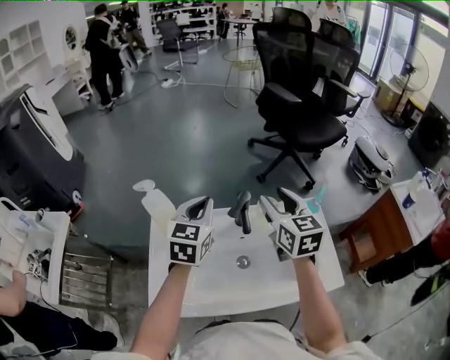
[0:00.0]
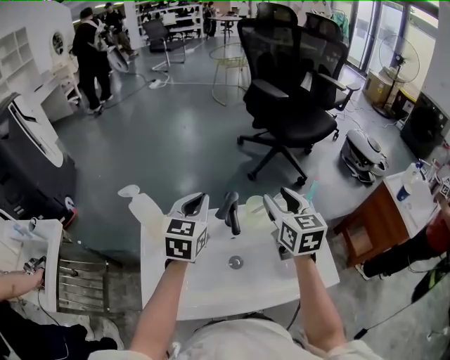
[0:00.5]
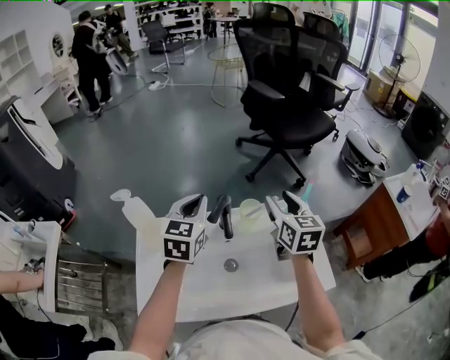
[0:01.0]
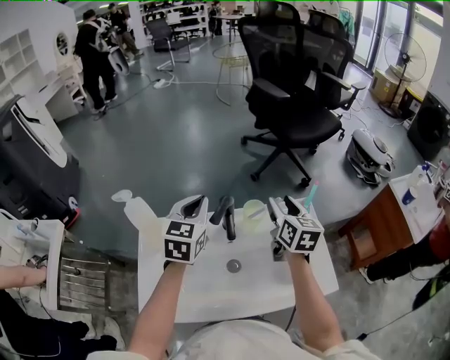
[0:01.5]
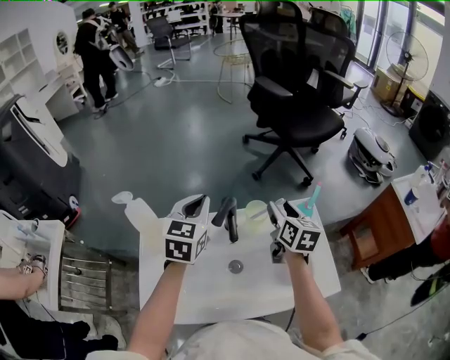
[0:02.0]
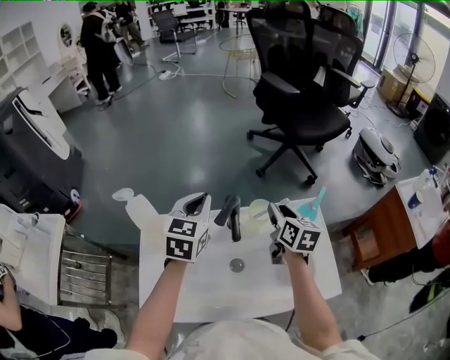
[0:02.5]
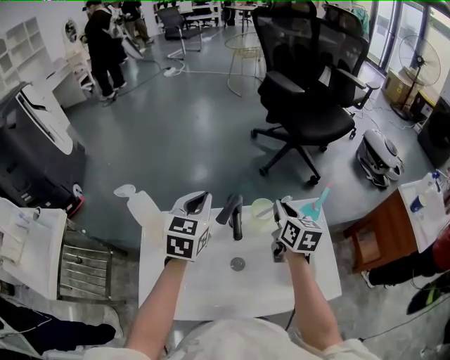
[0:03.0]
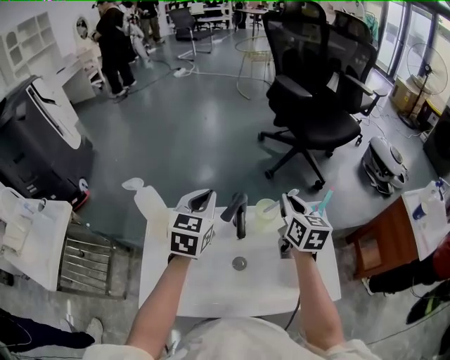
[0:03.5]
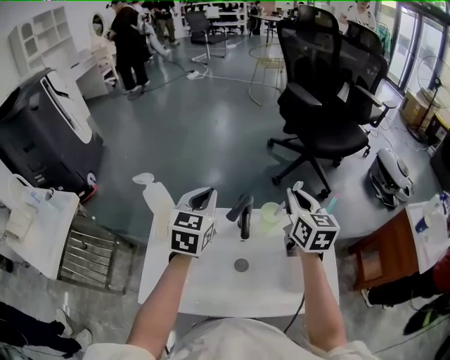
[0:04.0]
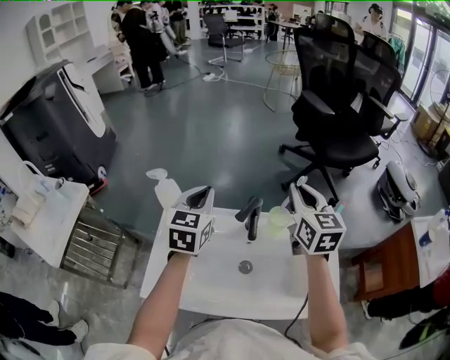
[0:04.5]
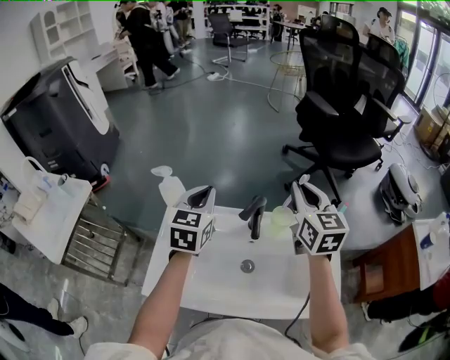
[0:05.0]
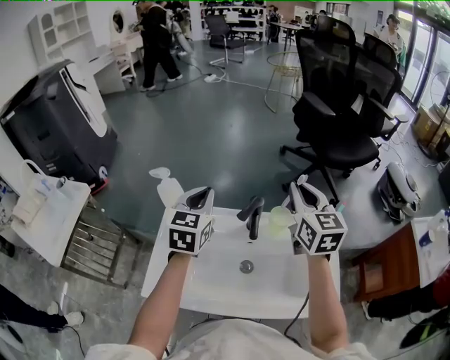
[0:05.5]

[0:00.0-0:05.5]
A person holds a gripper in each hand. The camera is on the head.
0:00.0 to 0:02.0: The right gripper travels downward and to the right by approximately 15 cm, and changes its angle by some 20 degrees, while the left gripper moves about 5 cm.
0:02.0 to 0:03.5: The right gripper closes its fingers.
0:03.5 to 0:05.5: The right gripper goes about 15 cm upward and to the left, and rotates approximately 20 degrees; the left gripper goes about 5 cm to the left.

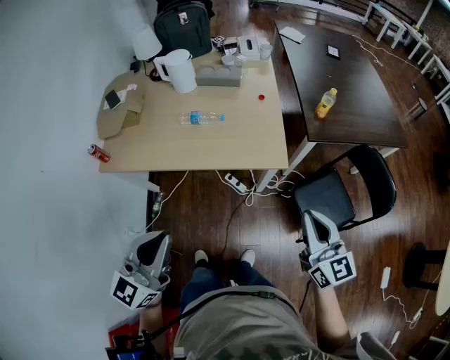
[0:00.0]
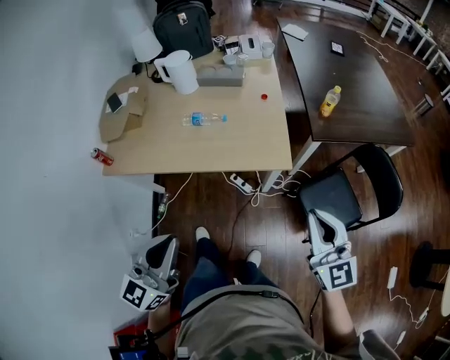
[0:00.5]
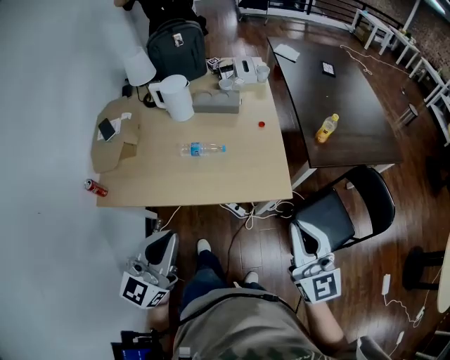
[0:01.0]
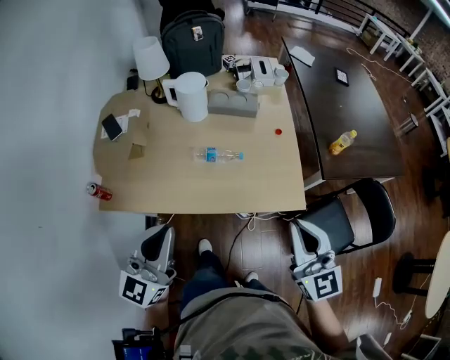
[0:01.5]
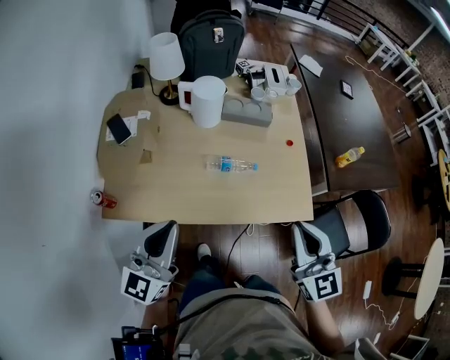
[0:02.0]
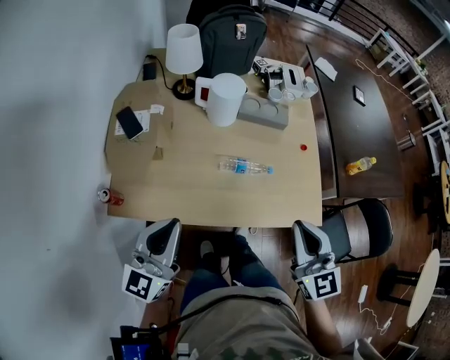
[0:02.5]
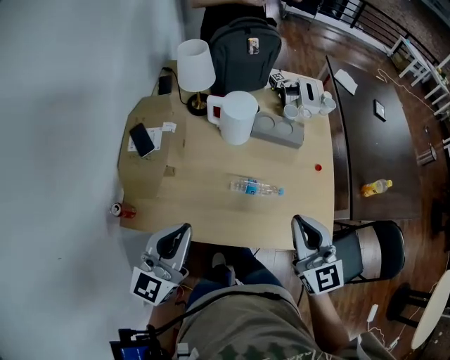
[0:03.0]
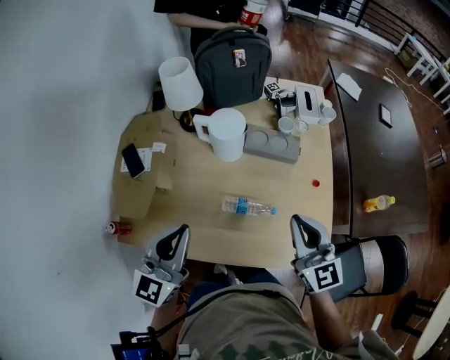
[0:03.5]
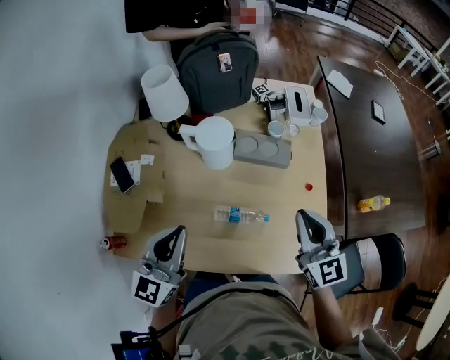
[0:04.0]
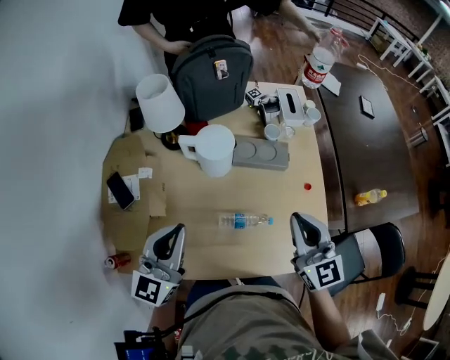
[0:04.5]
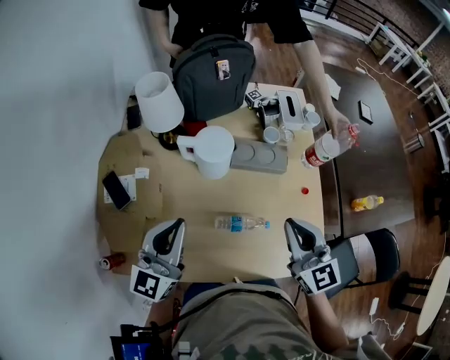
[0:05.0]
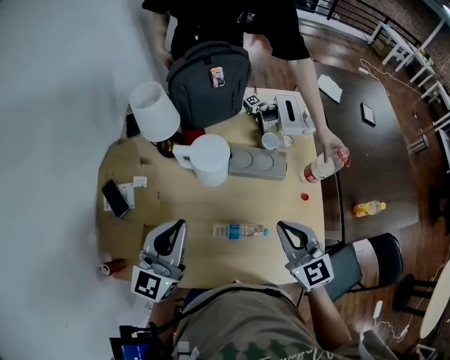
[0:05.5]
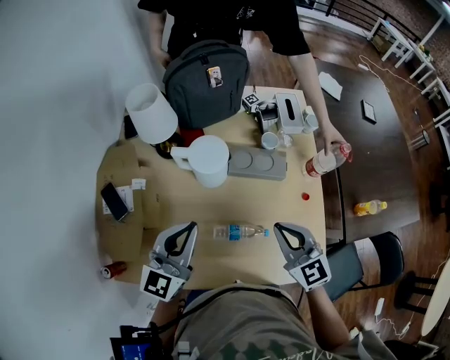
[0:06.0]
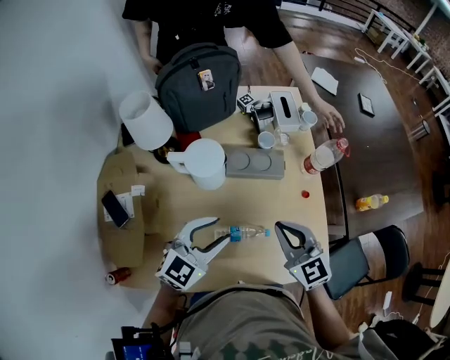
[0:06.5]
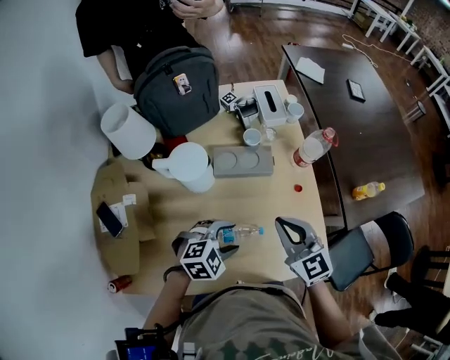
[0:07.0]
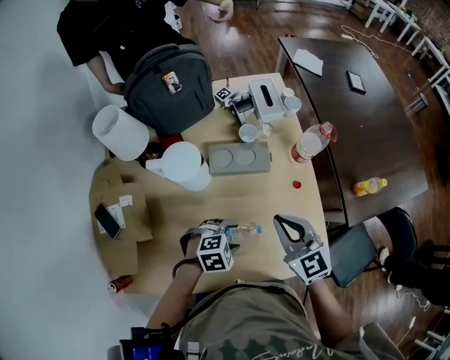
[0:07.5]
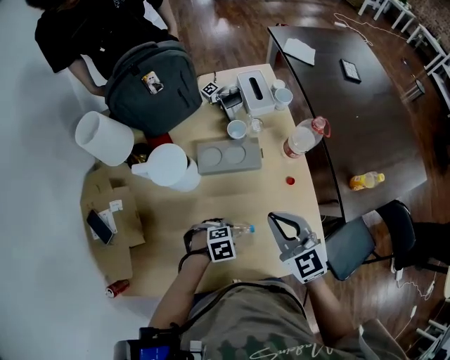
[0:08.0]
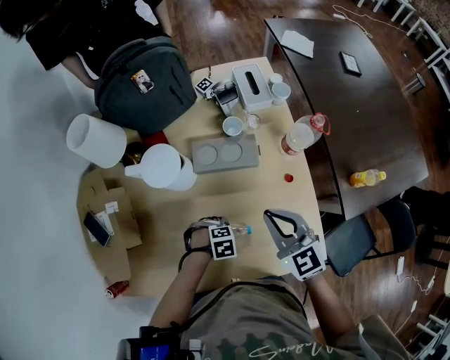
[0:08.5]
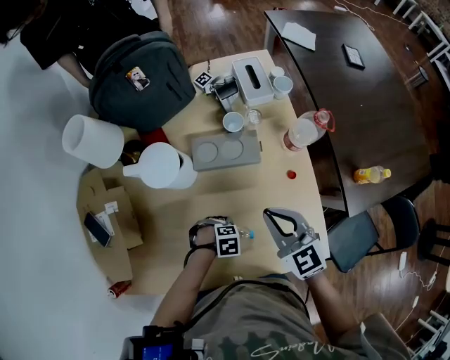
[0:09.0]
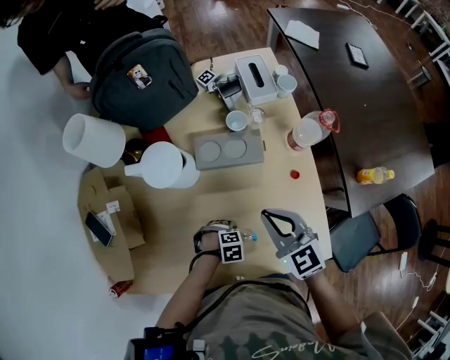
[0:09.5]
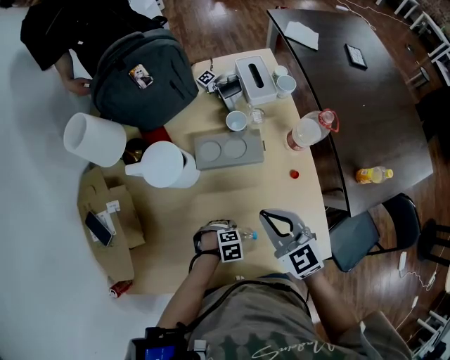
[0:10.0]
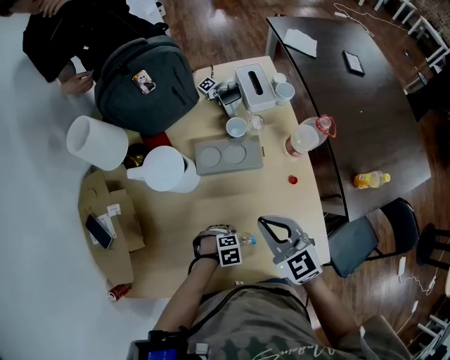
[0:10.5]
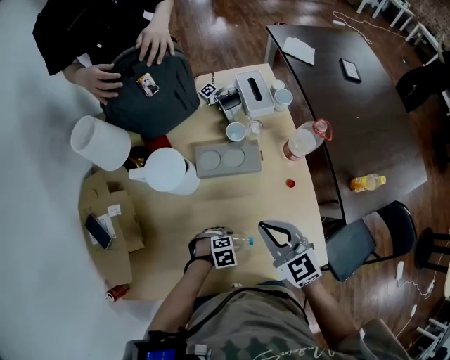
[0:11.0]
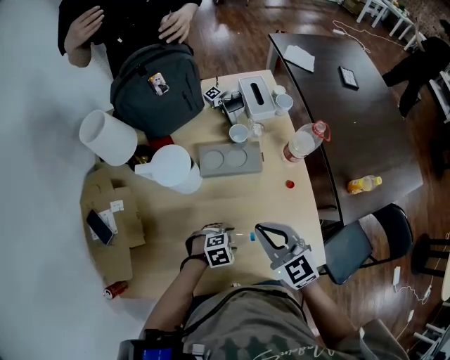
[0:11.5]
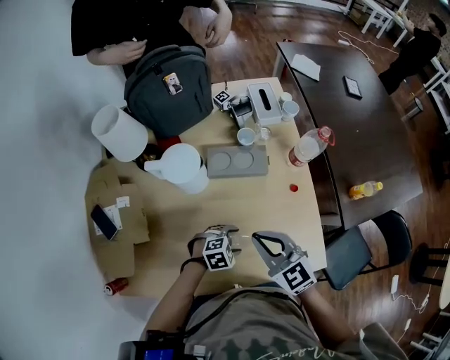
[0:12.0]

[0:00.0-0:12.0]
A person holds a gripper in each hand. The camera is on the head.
0:00.0 to 0:02.0: The right gripper goes roughly 30 cm to the left and forward. The left gripper is displaced forward and to the left by roughly 35 cm.
0:02.0 to 0:04.0: The two grippers go approximately 25 cm forward.
0:04.0 to 0:06.0: The right gripper heads to the left and downward, covering some 10 cm, while the left gripper moves forward, roughly 10 cm.
0:06.0 to 0:08.0: The right gripper ends up approximately 10 cm from where it was. The left gripper shifts about 30 cm downward, tips its fingers downward by some 70 degrees, and opens its fingers.
0:08.0 to 0:10.0: The left gripper moves downward, about 10 cm.
0:10.0 to 0:12.0: The left gripper goes some 10 cm upward, and rotates some 20 degrees, while the right gripper changes place by roughly 10 cm.

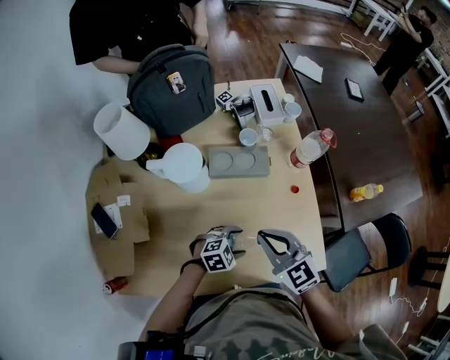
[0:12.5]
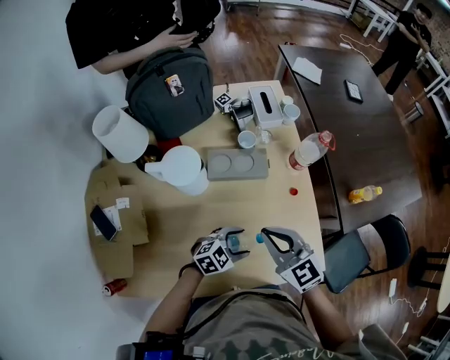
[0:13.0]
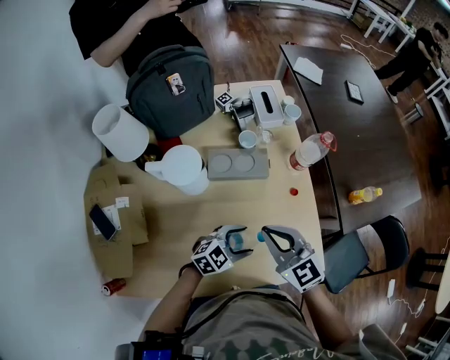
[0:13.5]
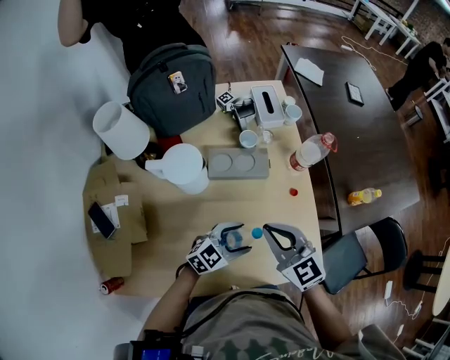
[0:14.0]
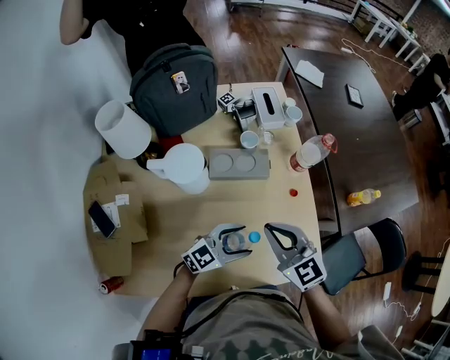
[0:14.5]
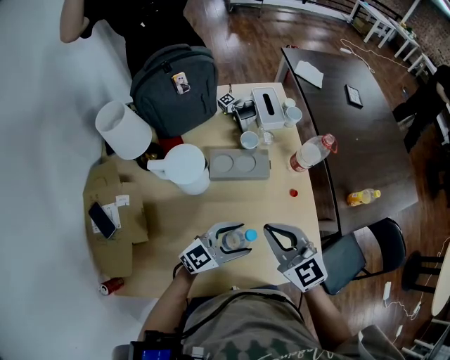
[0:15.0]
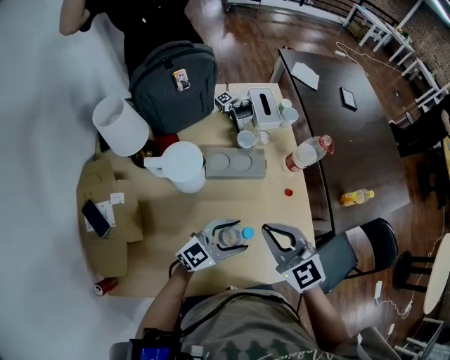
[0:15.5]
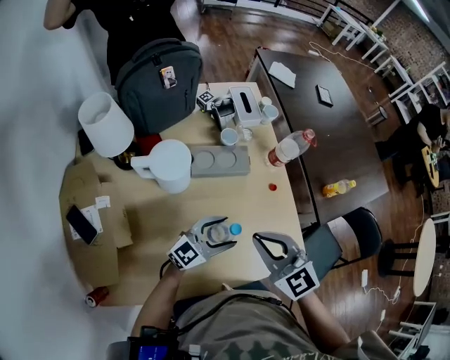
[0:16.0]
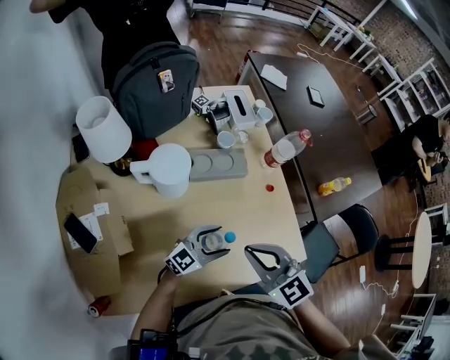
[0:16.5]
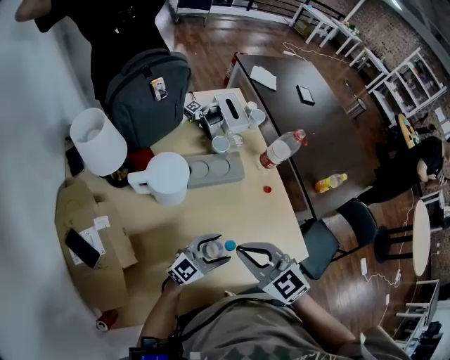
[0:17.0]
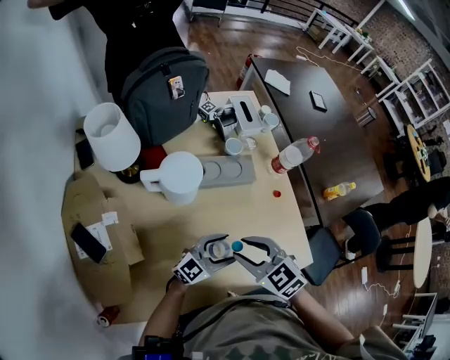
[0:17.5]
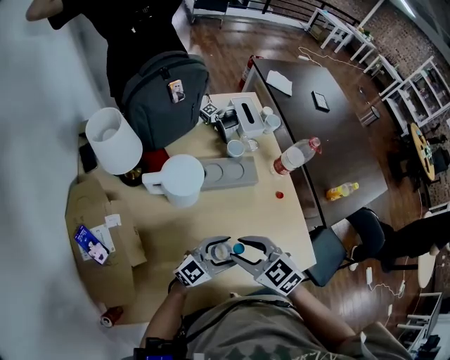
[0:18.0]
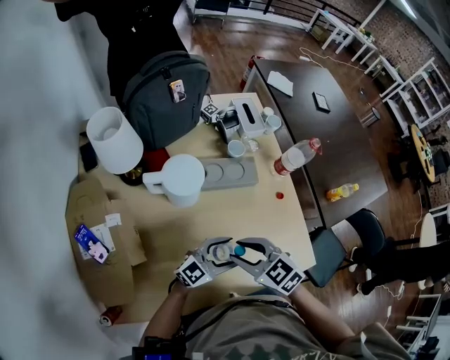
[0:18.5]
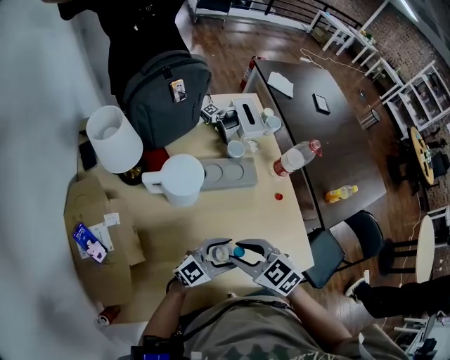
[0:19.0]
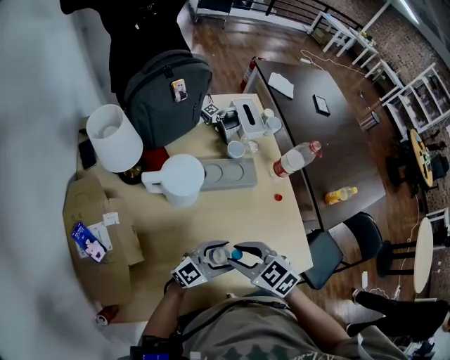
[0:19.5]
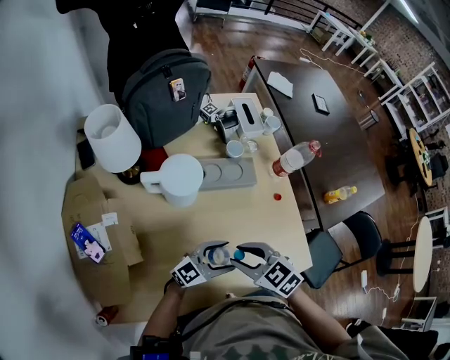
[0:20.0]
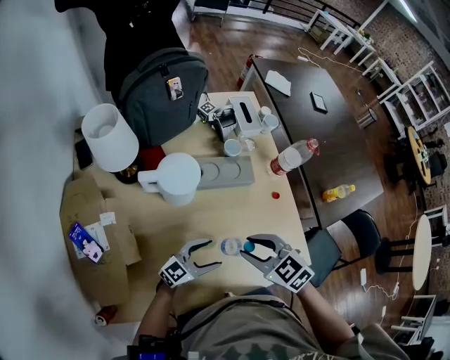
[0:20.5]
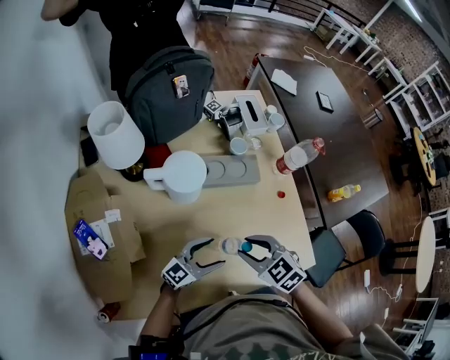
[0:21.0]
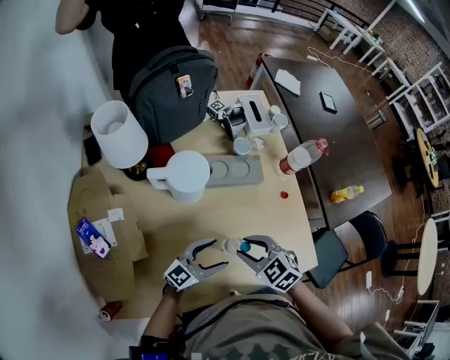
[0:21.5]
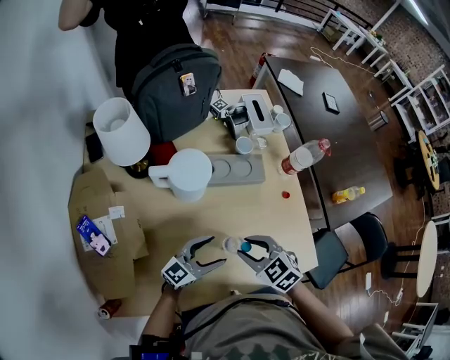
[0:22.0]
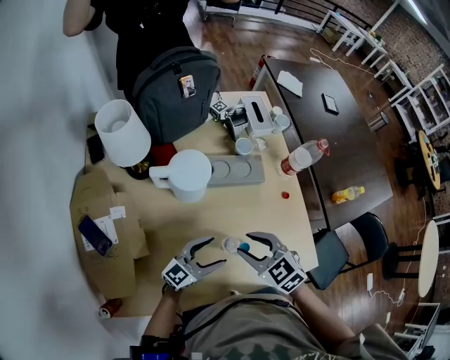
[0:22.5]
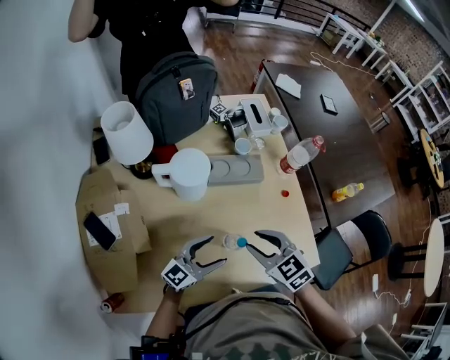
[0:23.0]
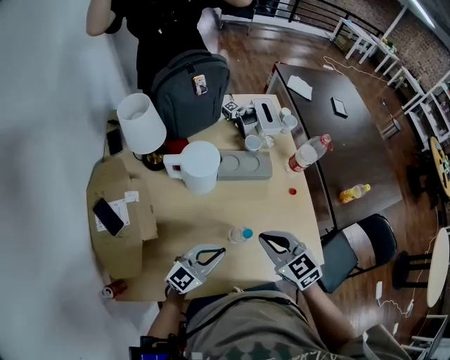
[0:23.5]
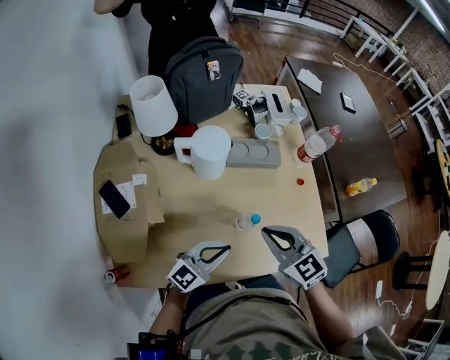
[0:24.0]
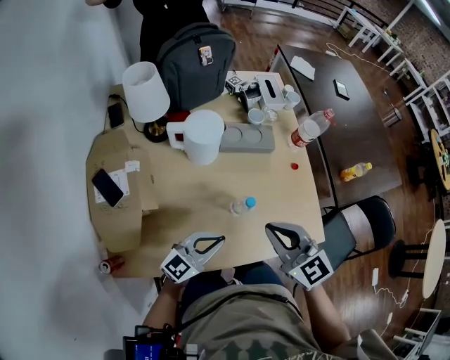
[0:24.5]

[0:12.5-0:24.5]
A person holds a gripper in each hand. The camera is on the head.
0:12.5 to 0:14.5: The left gripper shifts about 10 cm upward, and angles its fingers upward, by some 40 degrees.
0:14.5 to 0:16.5: The right gripper shifts some 10 cm backward; the left gripper shifts by some 5 cm.
0:16.5 to 0:18.5: The right gripper moves downward, approximately 10 cm, changes its angle by about 20 degrees, and opens.
0:18.5 to 0:20.5: The left gripper heads downward, covering about 5 cm.
0:20.5 to 0:22.5: The left gripper moves roughly 5 cm.
0:22.5 to 0:24.5: The left gripper moves backward and upward, approximately 10 cm, and closes. The right gripper travels upward and backward by roughly 15 cm, changes its angle by about 30 degrees, and closes up.
